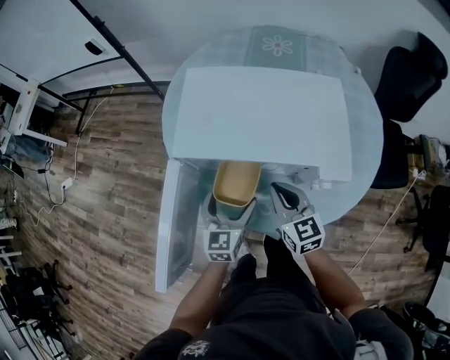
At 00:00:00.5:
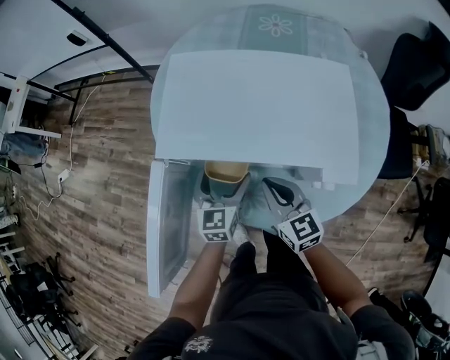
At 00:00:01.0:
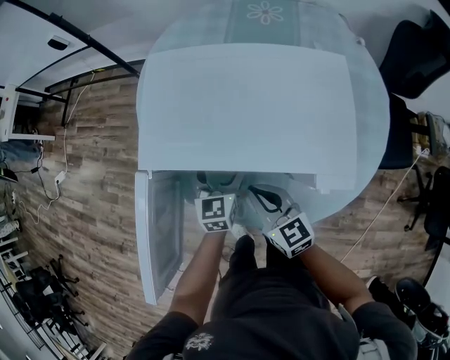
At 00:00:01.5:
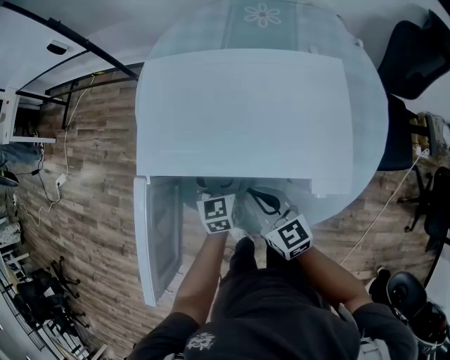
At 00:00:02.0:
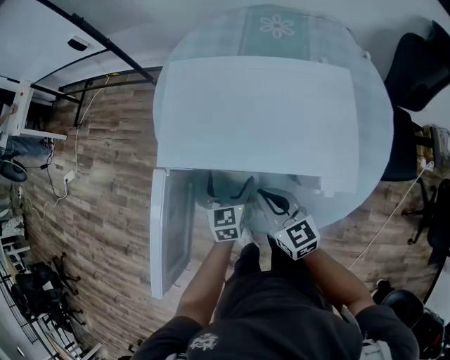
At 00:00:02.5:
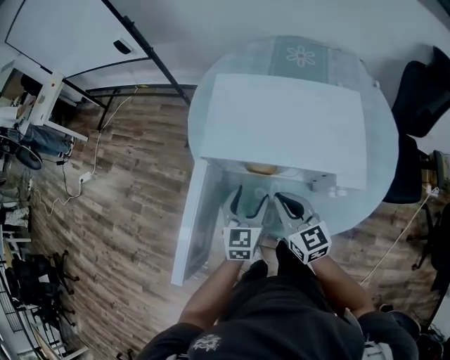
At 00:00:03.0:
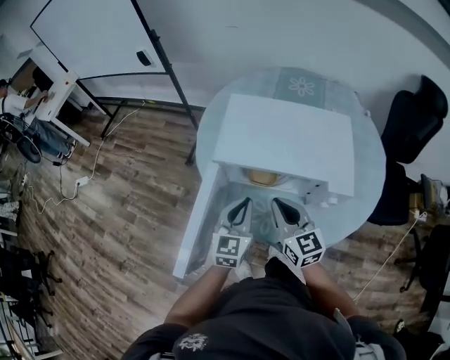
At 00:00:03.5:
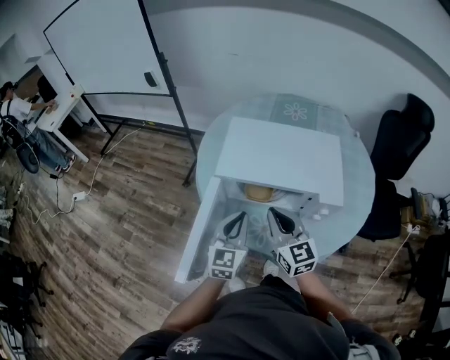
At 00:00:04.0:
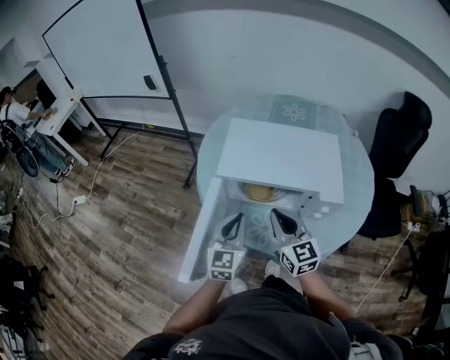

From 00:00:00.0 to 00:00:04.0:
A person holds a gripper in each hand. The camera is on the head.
From 00:00:00.0 to 00:00:02.0: The left gripper heads downward and forward, covering roughly 10 cm.
From 00:00:02.0 to 00:00:04.0: The left gripper heads upward, backward and to the left, covering some 25 cm, changes its angle by some 20 degrees, and closes its fingers. The right gripper moves upward, some 15 cm.

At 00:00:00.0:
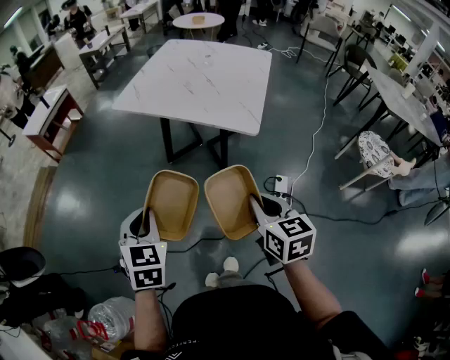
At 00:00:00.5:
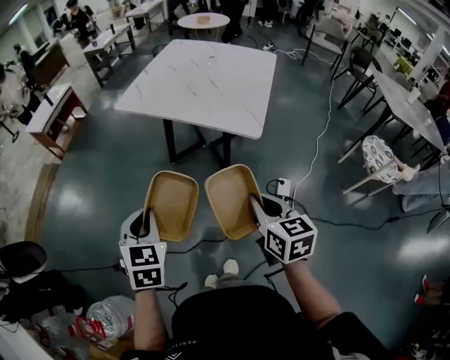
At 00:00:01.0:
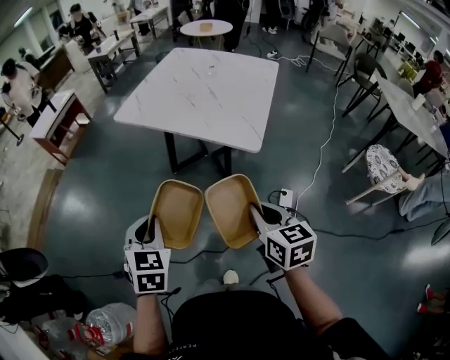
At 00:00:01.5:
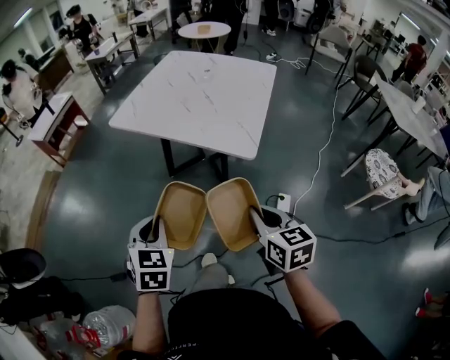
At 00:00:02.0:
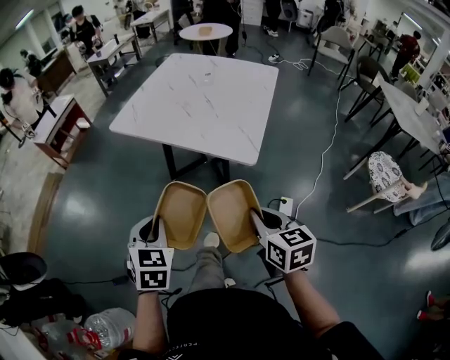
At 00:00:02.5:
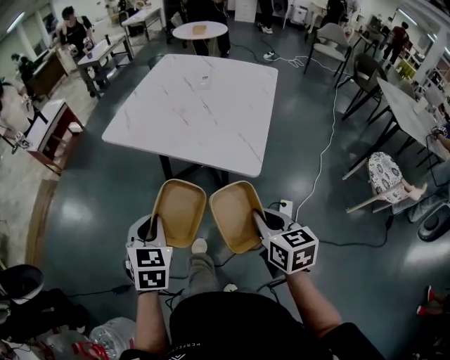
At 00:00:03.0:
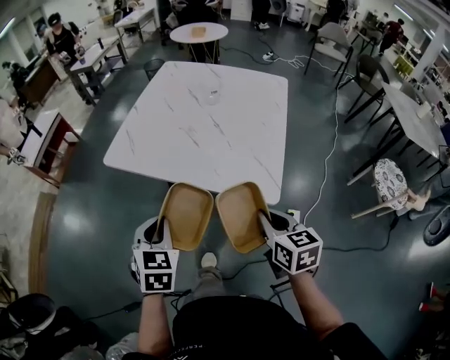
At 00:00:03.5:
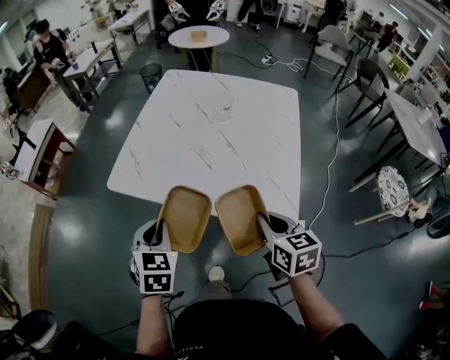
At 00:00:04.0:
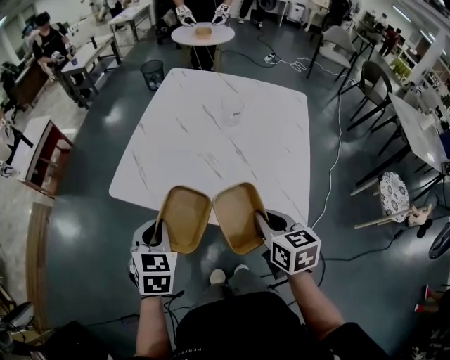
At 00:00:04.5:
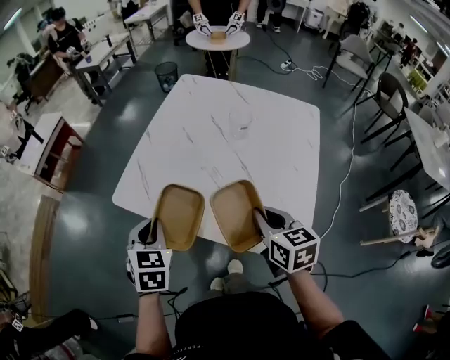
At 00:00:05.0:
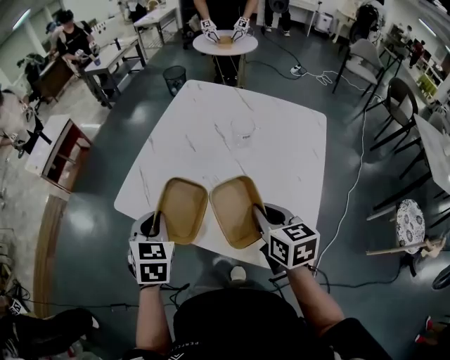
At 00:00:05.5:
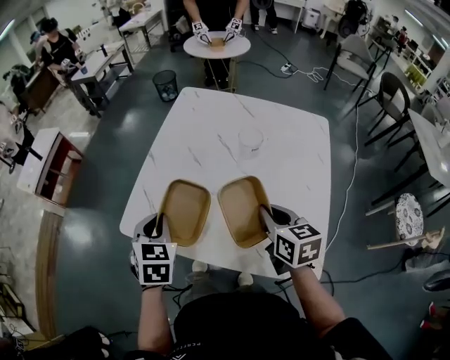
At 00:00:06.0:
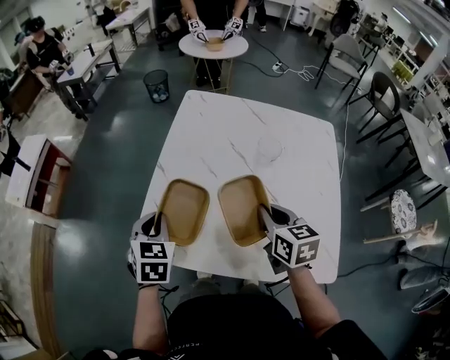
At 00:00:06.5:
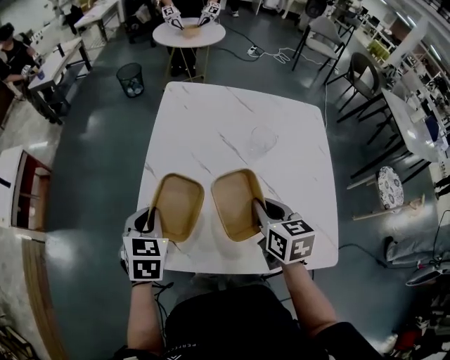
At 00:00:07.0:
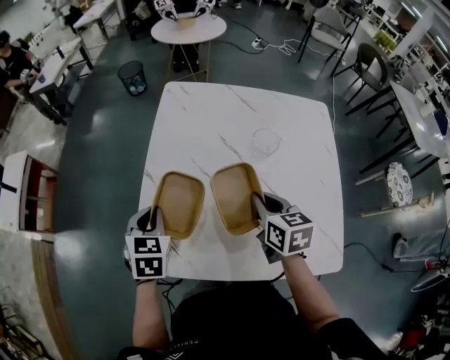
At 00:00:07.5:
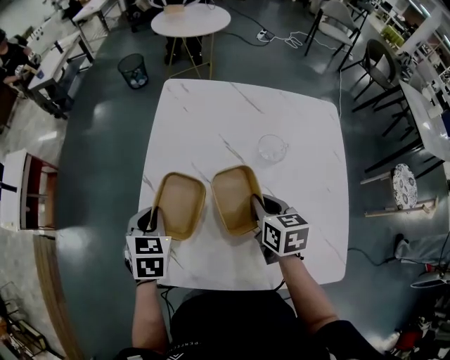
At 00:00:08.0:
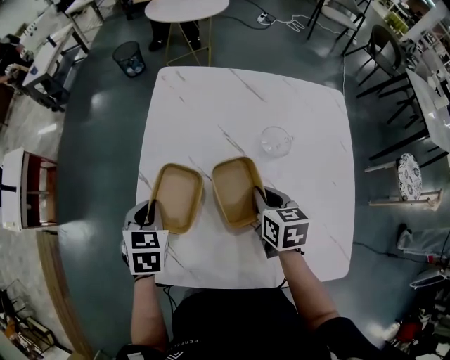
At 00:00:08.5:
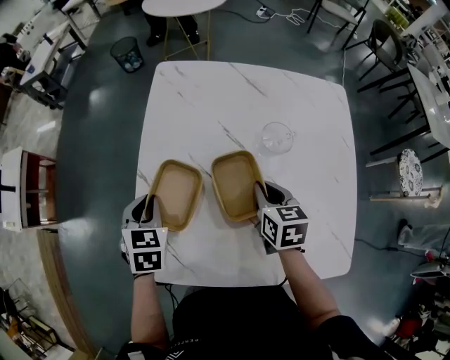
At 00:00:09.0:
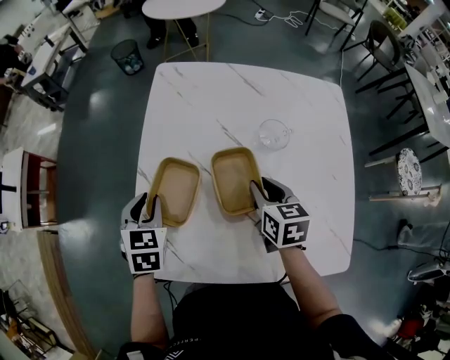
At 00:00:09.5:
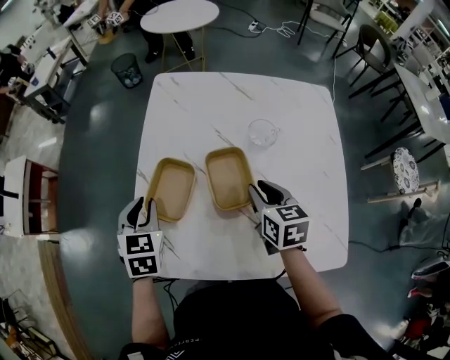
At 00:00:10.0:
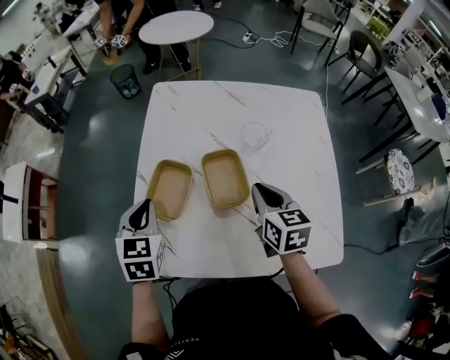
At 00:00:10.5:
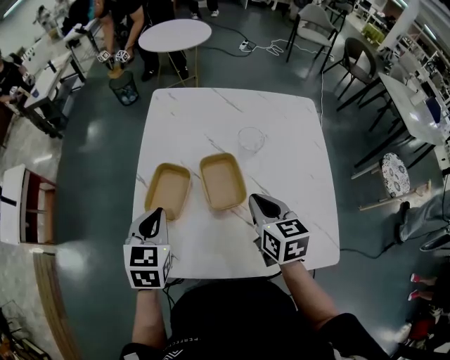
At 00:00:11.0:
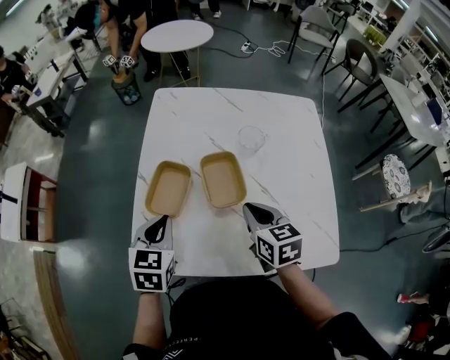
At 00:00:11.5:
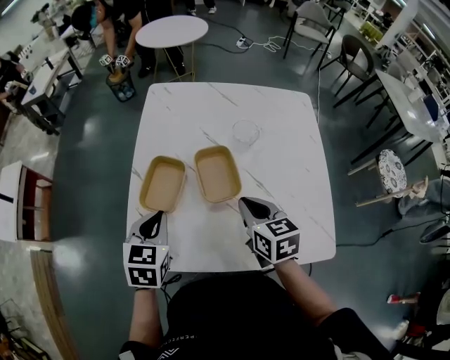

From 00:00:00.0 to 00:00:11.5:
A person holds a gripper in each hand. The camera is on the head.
From 00:00:00.0 to 00:00:02.0: Both grippers travel together to the right and forward, some 10 cm.
From 00:00:02.0 to 00:00:04.0: Both grippers travel together forward, about 35 cm.
From 00:00:04.0 to 00:00:06.0: The grippers both shift forward by approximately 25 cm.
From 00:00:06.0 to 00:00:07.5: The right gripper travels forward and downward by approximately 10 cm. Meanwhile the left gripper moves forward, about 10 cm.
From 00:00:07.5 to 00:00:09.5: The right gripper opens its fingers.
From 00:00:09.5 to 00:00:11.5: The right gripper goes some 10 cm backward, and closes up; the left gripper heads backward and to the right, covering roughly 10 cm, and closes up.

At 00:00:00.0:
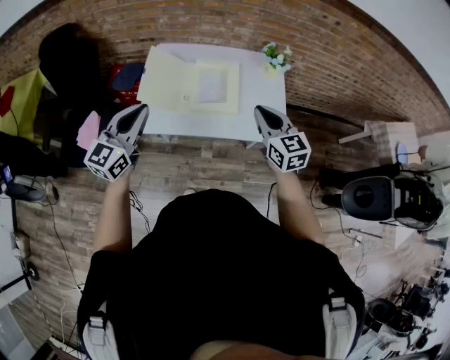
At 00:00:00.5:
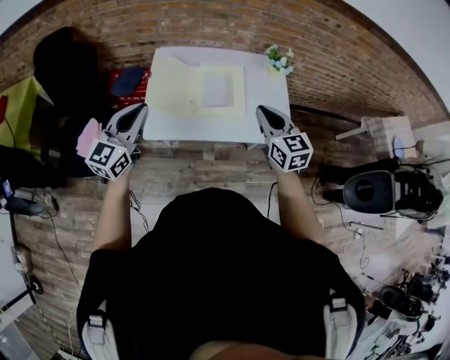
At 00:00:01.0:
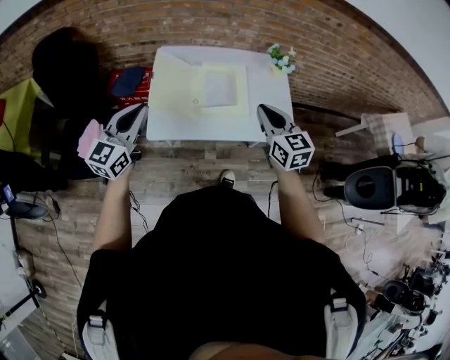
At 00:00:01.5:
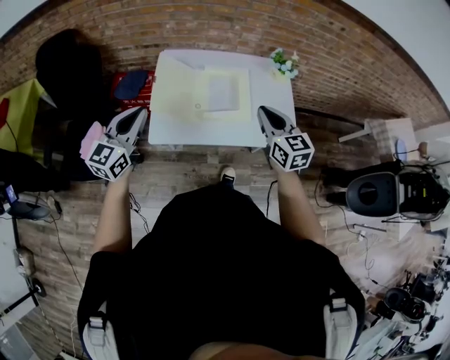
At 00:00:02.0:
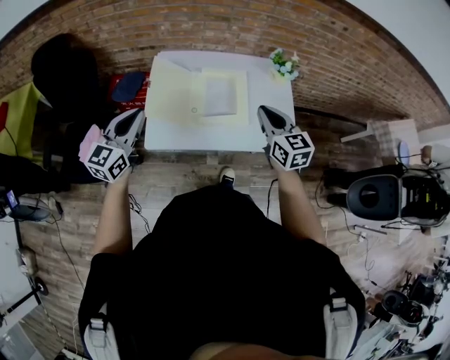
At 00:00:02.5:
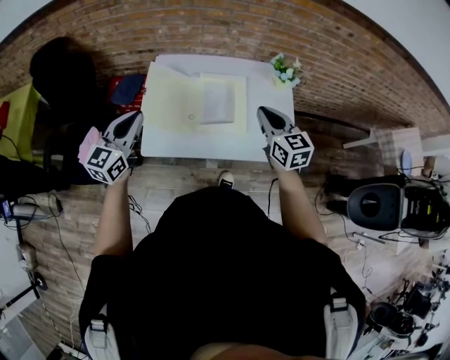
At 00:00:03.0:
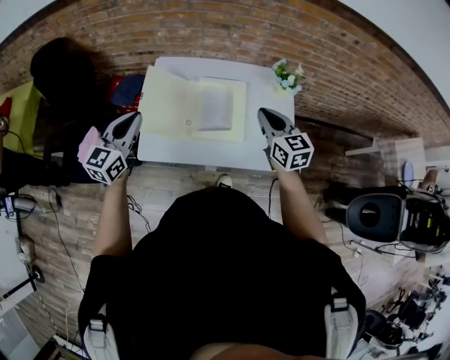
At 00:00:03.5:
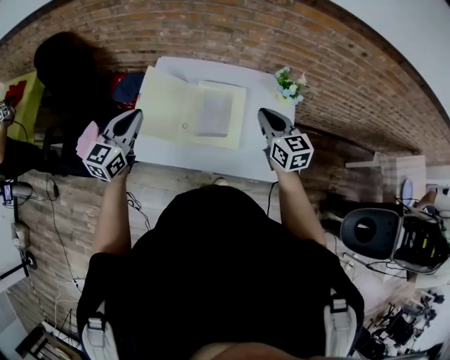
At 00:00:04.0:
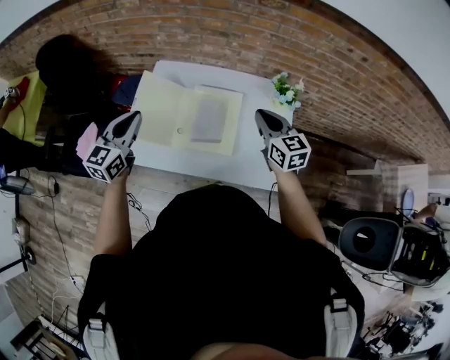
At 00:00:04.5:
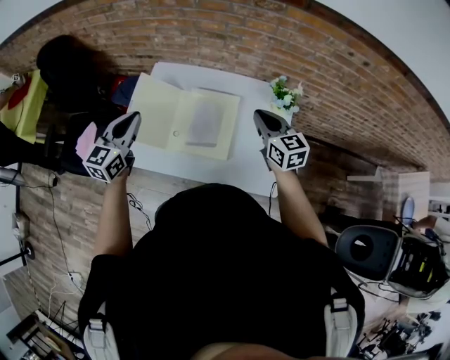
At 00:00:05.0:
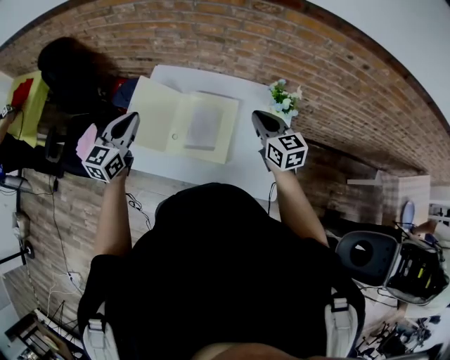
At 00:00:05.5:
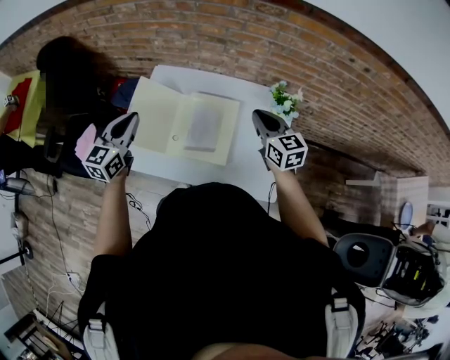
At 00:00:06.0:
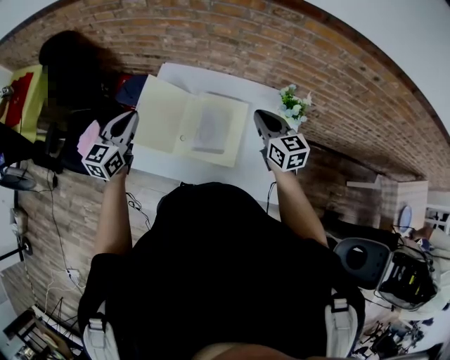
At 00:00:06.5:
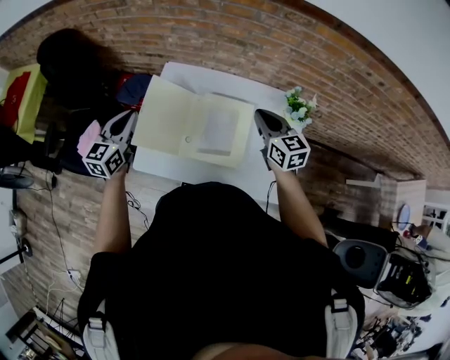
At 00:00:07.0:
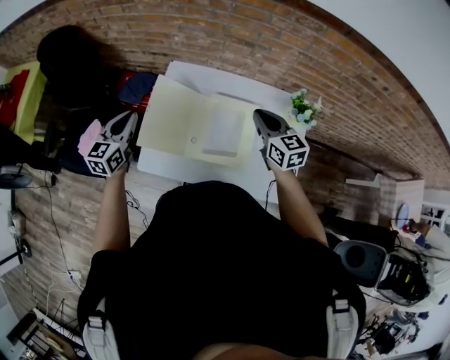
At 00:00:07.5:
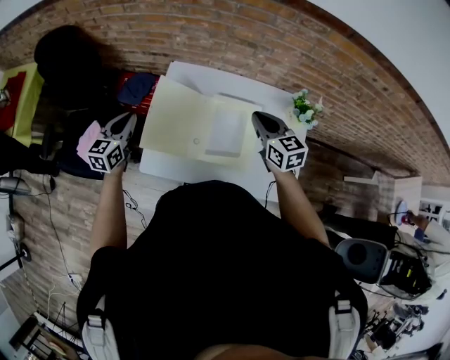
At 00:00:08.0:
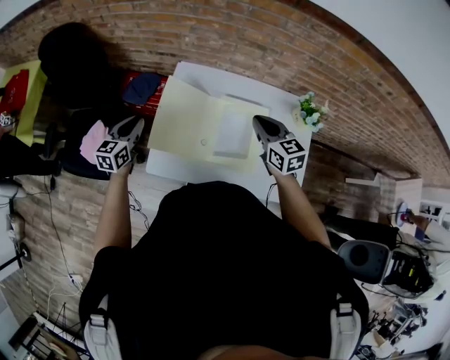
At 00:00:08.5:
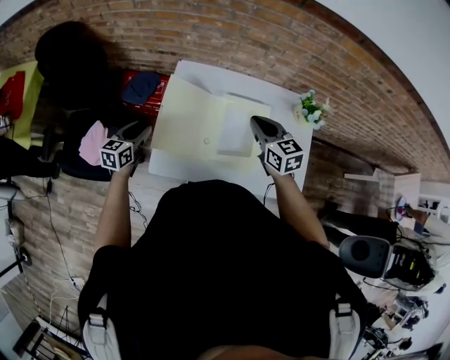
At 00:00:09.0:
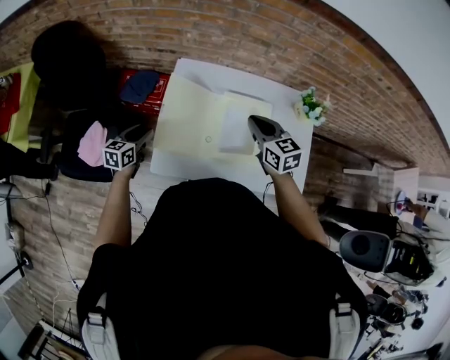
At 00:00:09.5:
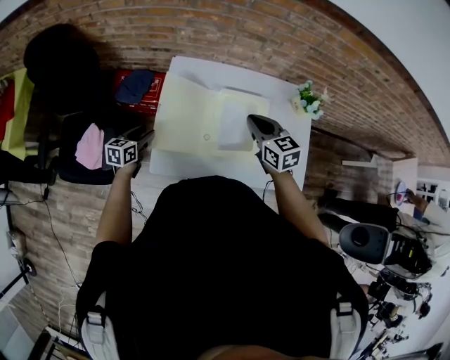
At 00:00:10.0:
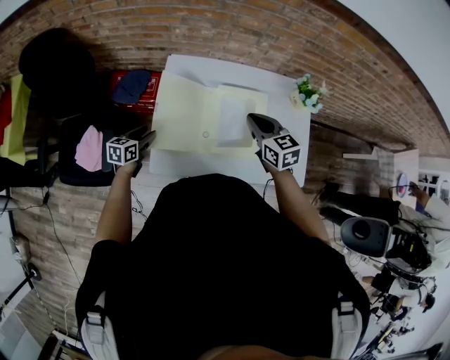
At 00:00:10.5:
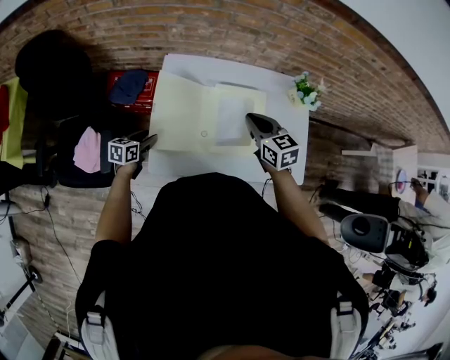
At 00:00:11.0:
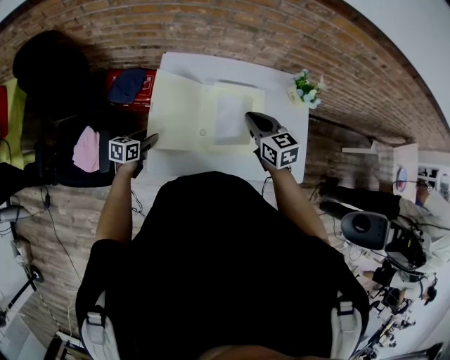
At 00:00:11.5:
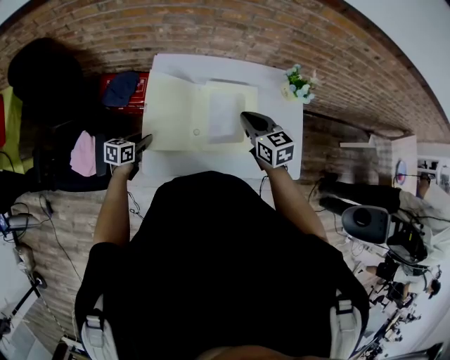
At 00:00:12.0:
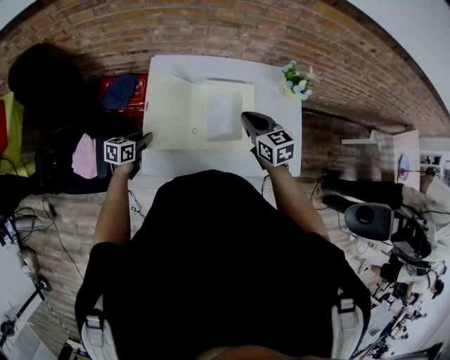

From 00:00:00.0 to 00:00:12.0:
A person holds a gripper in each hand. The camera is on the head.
From 00:00:00.0 to 00:00:02.0: The right gripper moves forward and to the left, some 10 cm; the left gripper moves to the left and forward, about 10 cm.
From 00:00:02.0 to 00:00:04.0: The two grippers go approximately 20 cm forward and to the right.
From 00:00:04.0 to 00:00:06.0: The grippers both shift forward by about 5 cm.
From 00:00:06.0 to 00:00:08.0: The right gripper moves to the left, about 15 cm. The left gripper heads to the left, downward and forward, covering approximately 20 cm.
From 00:00:08.0 to 00:00:10.0: The left gripper moves downward, about 15 cm, changes its angle by approximately 20 degrees, and opens its fingers; the right gripper ends up some 5 cm from where it was.
From 00:00:10.0 to 00:00:12.0: The left gripper closes its fingers.
